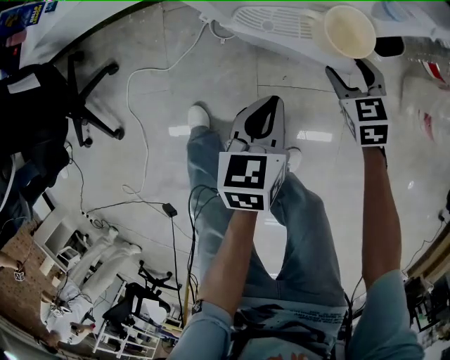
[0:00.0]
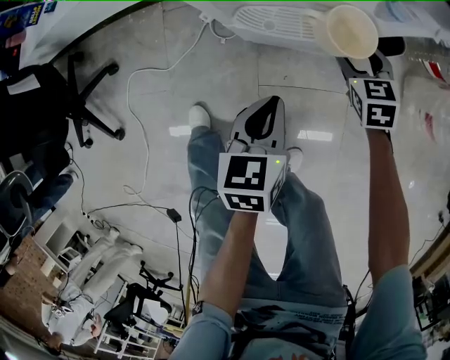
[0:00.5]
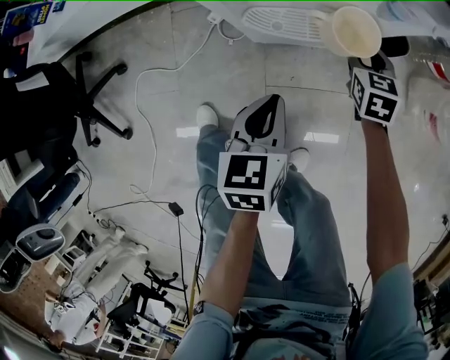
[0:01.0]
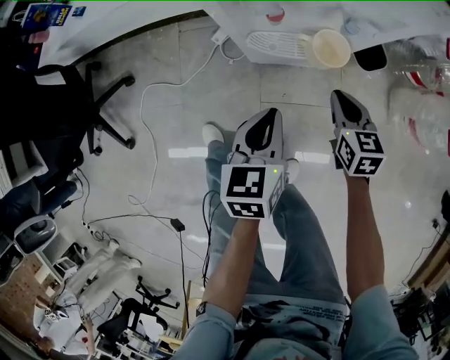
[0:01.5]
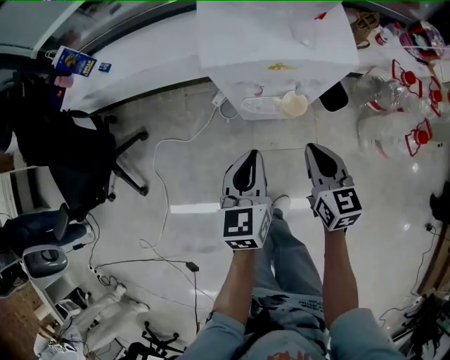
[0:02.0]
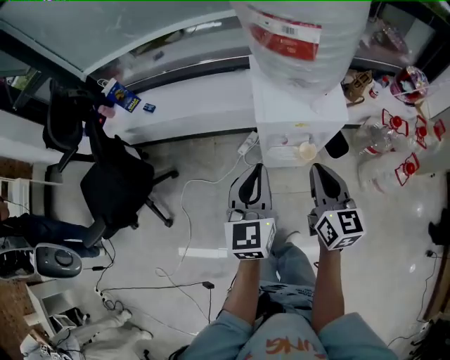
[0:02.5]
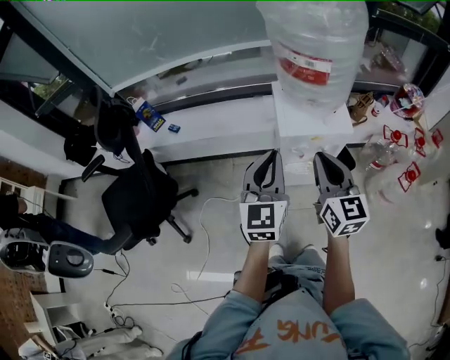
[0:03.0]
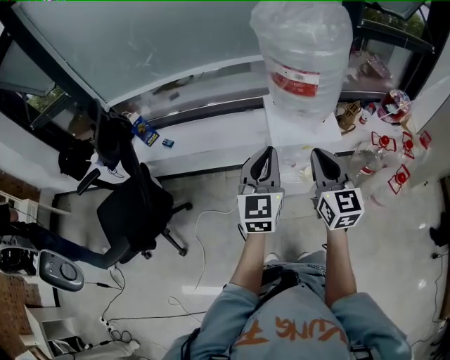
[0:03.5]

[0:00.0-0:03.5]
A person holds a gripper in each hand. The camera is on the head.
0.0 to 2.0 s: Both grippers move upward, about 30 cm. The right gripper swivels some 30 degrees, and closes up.
2.0 to 3.5 s: Both grippers move upward, approximately 35 cm. The left gripper swivels about 30 degrees; the right gripper rotates about 30 degrees.

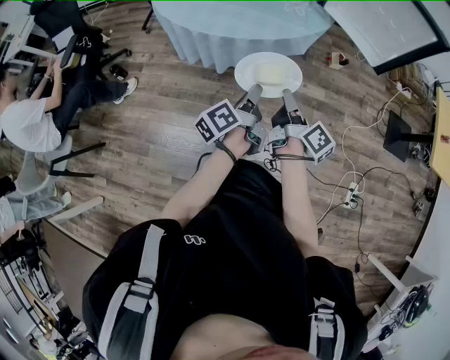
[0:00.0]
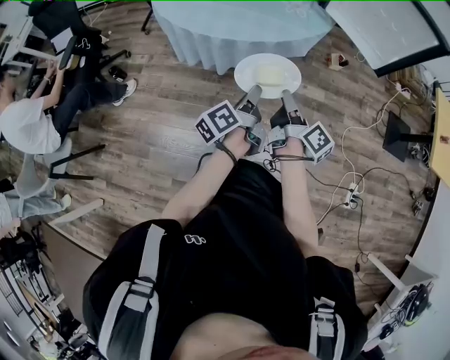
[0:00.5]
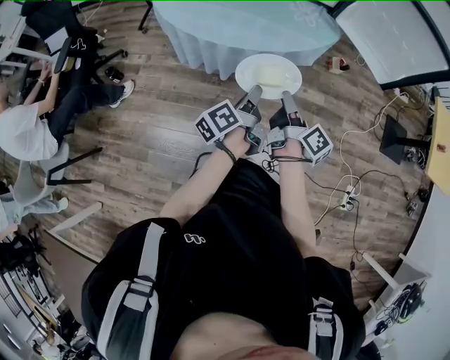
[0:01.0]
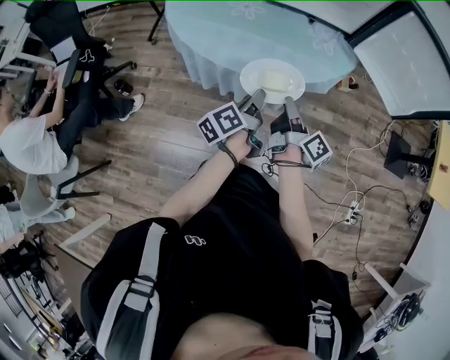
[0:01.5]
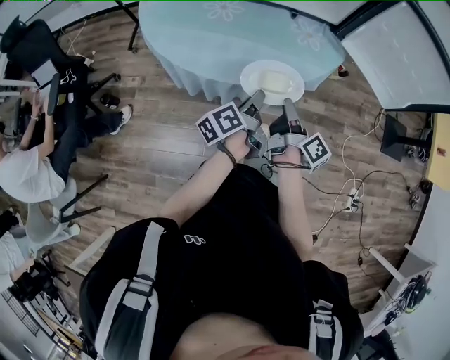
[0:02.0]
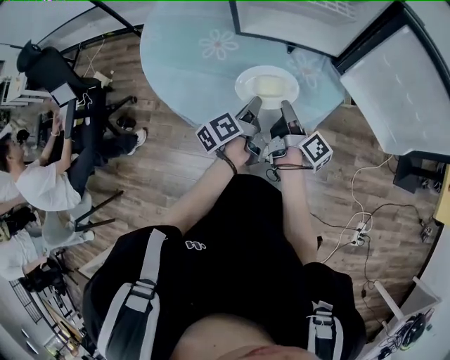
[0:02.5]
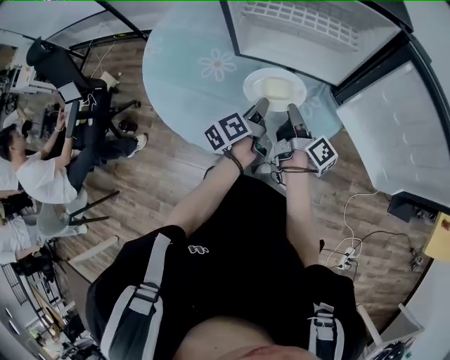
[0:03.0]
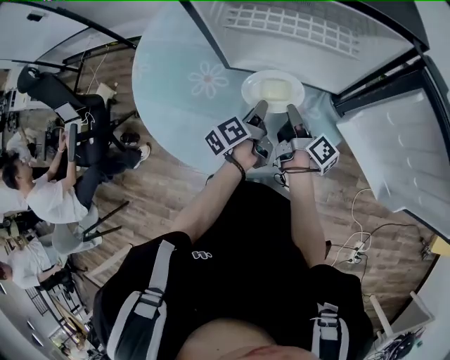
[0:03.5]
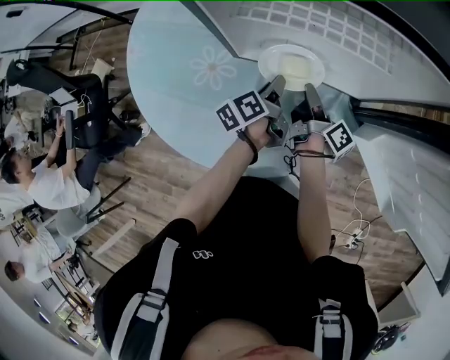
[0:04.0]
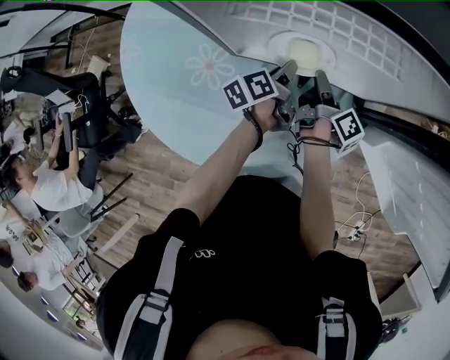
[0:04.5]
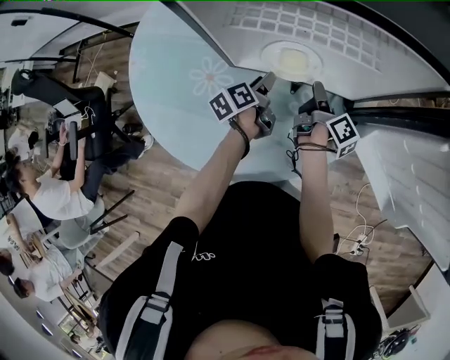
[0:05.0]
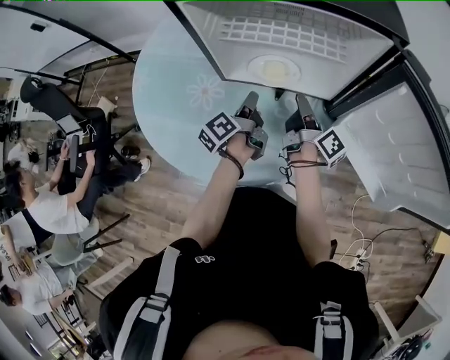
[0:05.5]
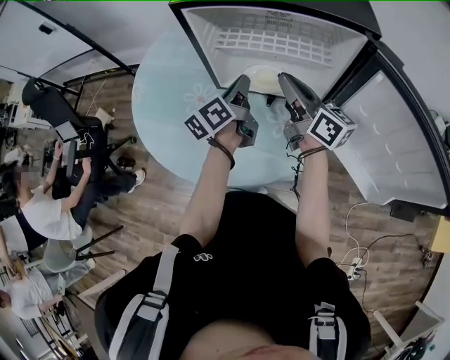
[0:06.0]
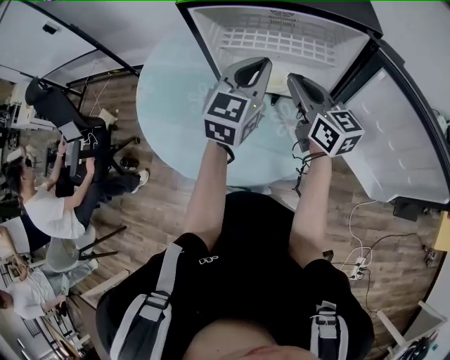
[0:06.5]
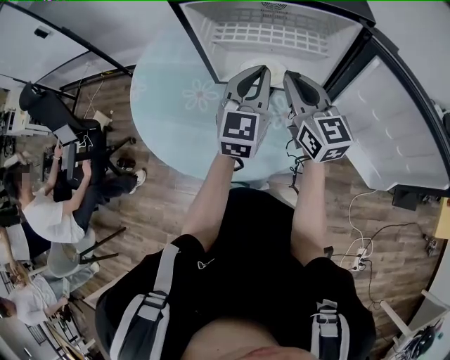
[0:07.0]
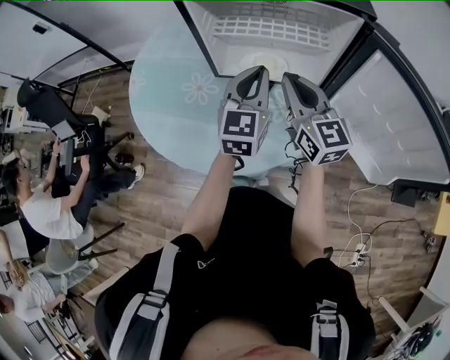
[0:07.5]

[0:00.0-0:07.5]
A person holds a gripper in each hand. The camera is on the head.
0.0 to 2.0 s: Both grippers travel together forward and to the left, approximately 20 cm.
2.0 to 4.0 s: Both grippers move forward, approximately 40 cm.
4.0 to 5.5 s: The left gripper is displaced upward by roughly 5 cm, and opens, then closes once more, while the right gripper travels upward and to the right by about 10 cm.
5.5 to 7.5 s: The two grippers go approximately 15 cm upward. The right gripper rotates around the line of its fingers by approximately 70 degrees, counterclockwise from behind. The left gripper twists approximately 80 degrees clockwise, seen from behind.

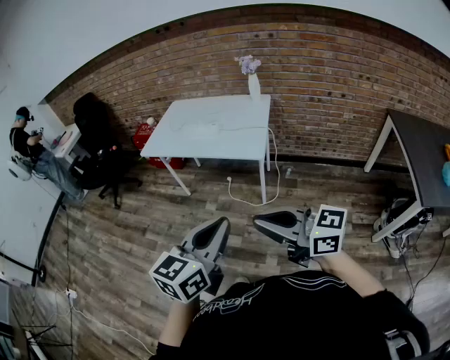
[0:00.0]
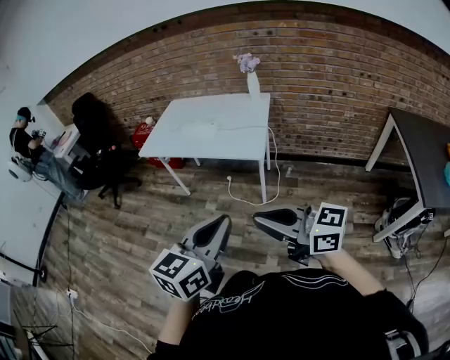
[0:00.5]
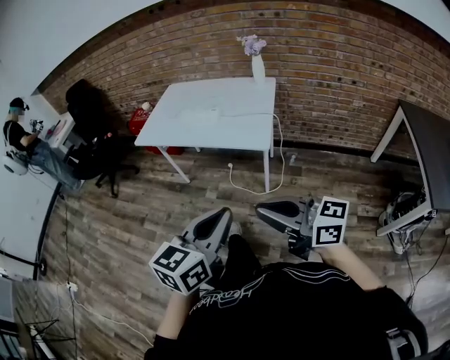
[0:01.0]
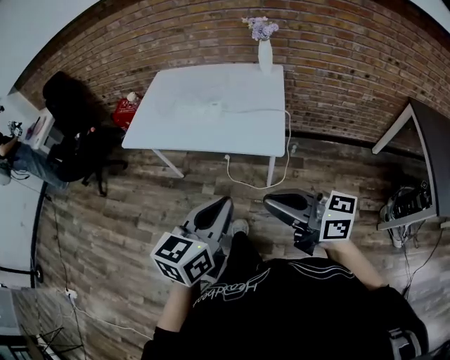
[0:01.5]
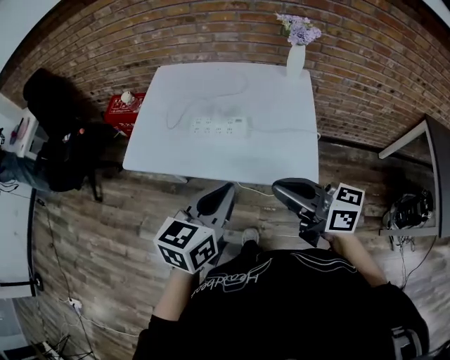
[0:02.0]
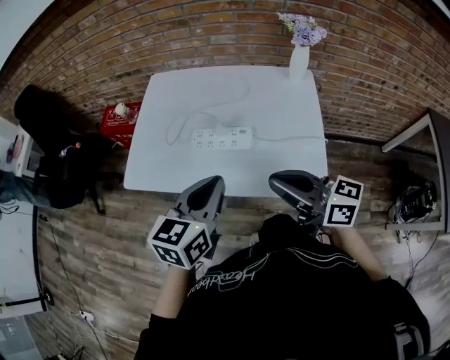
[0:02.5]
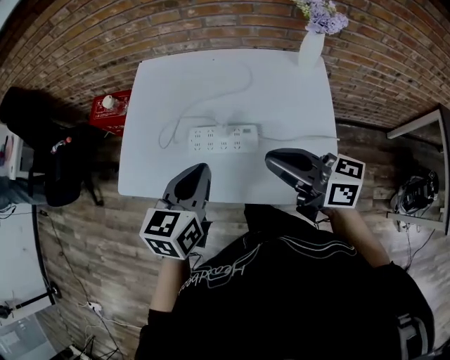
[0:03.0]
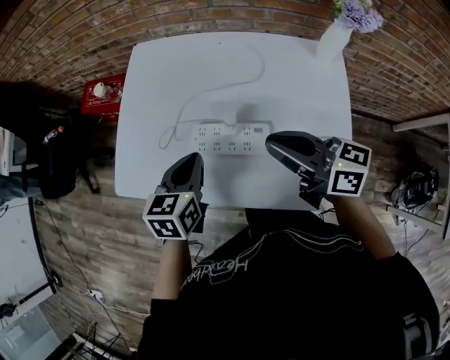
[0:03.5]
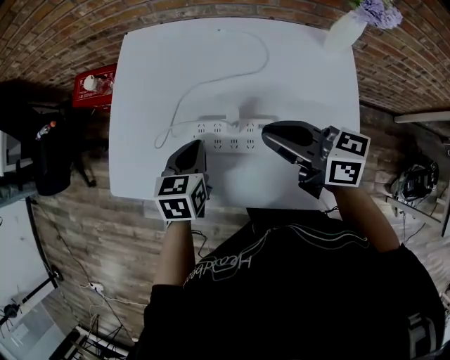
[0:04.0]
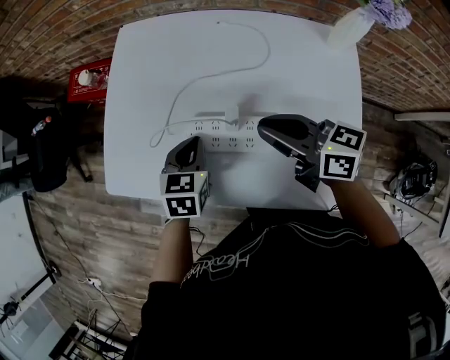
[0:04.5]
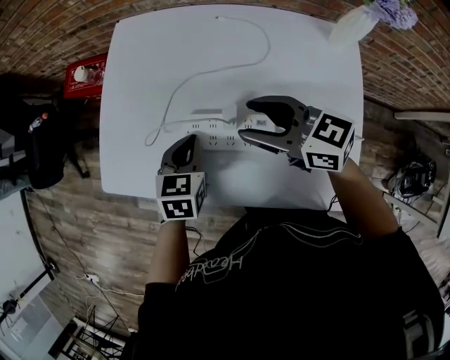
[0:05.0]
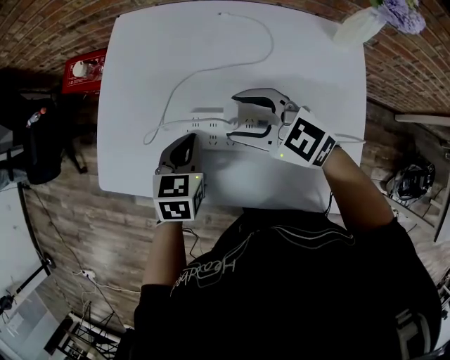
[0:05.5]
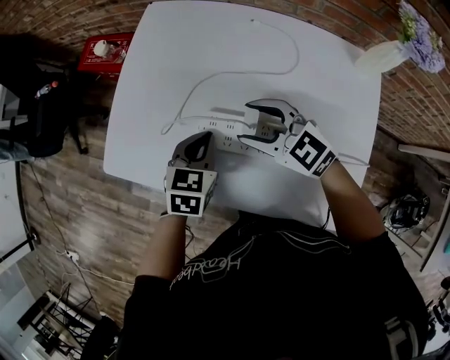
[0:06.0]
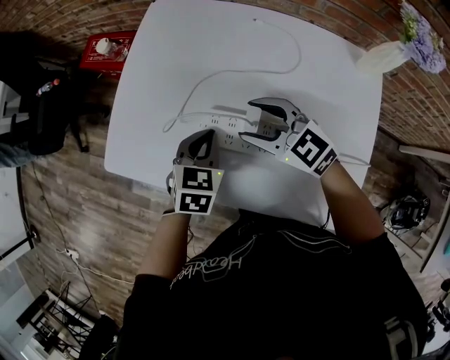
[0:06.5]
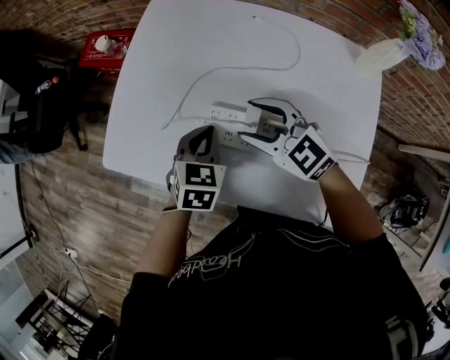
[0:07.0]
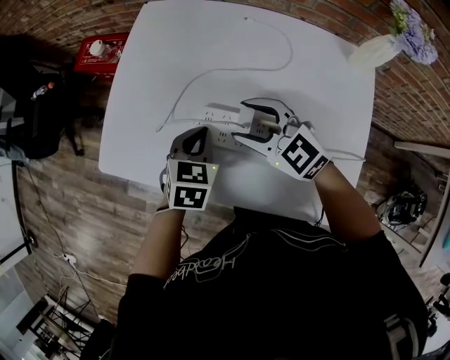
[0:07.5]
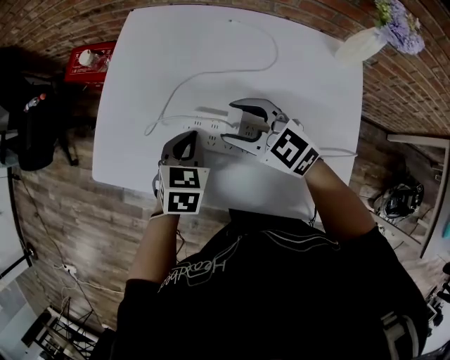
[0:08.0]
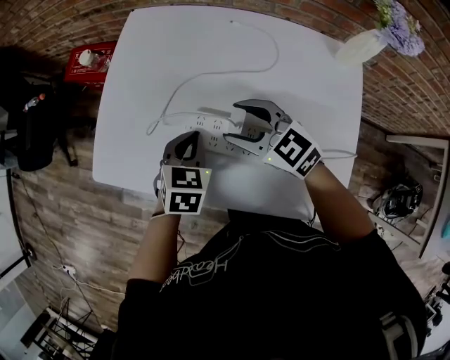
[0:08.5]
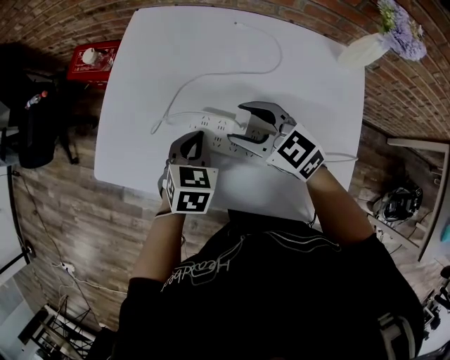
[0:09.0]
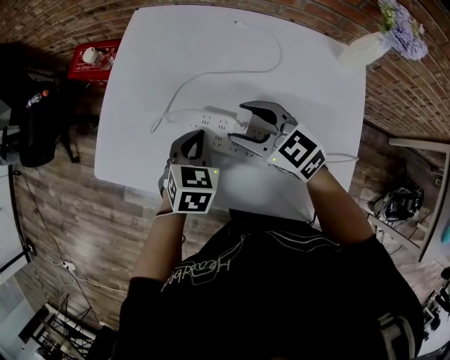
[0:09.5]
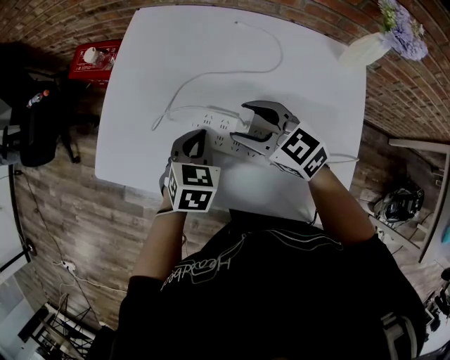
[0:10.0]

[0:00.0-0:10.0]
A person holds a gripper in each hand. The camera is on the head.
0.0 to 2.0 s: The pair of grippers is taken forward, roughly 50 cm. The right gripper swivels roughly 20 degrees.
2.0 to 4.0 s: The left gripper travels forward and downward by some 40 cm, and rotates about 30 degrees, while the right gripper heads forward, covering some 30 cm.
4.0 to 6.0 s: The right gripper goes some 10 cm downward, forward and to the left, rotates around the line of its fingers by some 50 degrees, counterclockwise from behind, and opens.
6.0 to 10.0 s: The grippers stay close to where they were, moving slightly.

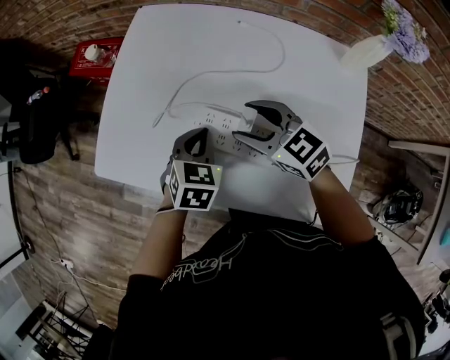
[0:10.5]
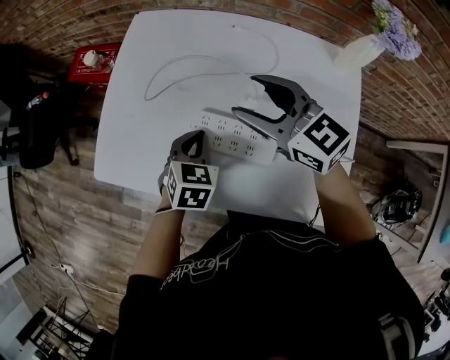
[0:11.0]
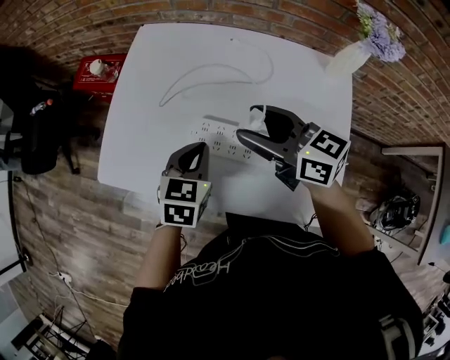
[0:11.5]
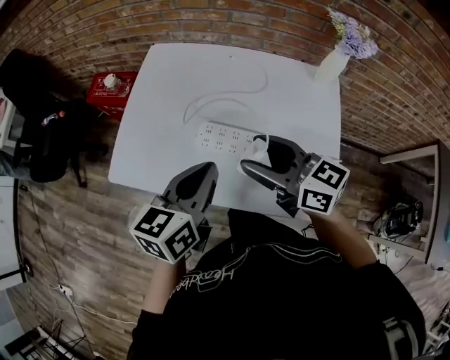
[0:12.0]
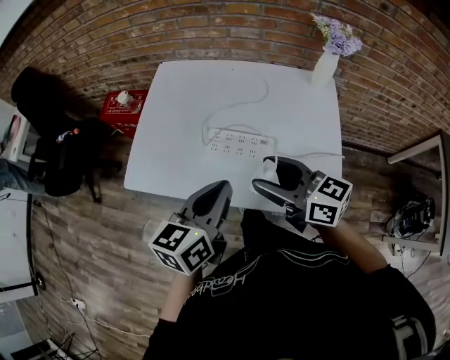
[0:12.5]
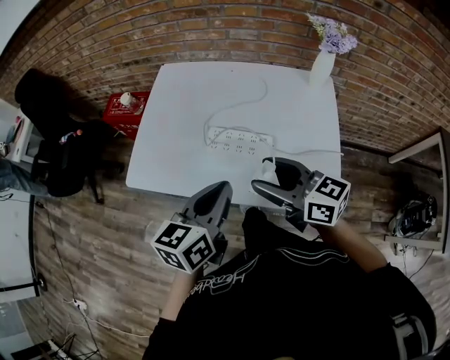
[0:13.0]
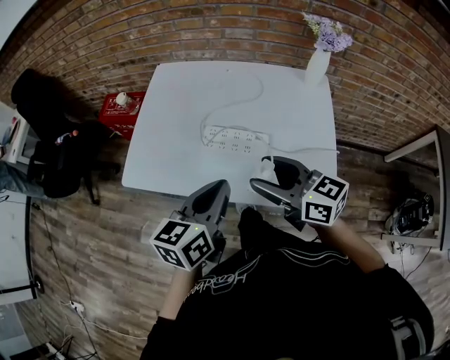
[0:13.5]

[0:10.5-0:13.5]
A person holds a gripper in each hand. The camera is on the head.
10.5 to 12.0 s: Both grippers travel together upward and backward, approximately 20 cm. The left gripper turns by some 40 degrees; the right gripper turns by approximately 30 degrees.
12.0 to 13.5 s: Both grippers move backward, some 10 cm.

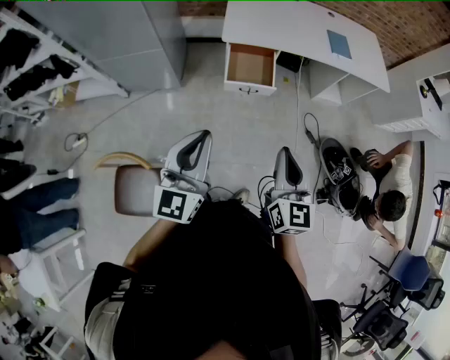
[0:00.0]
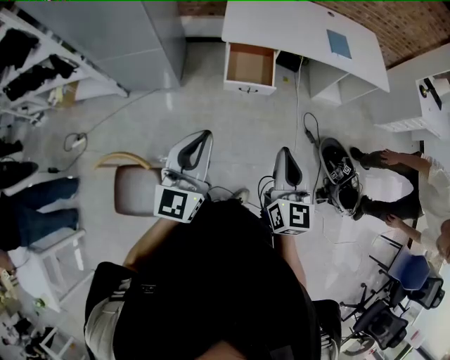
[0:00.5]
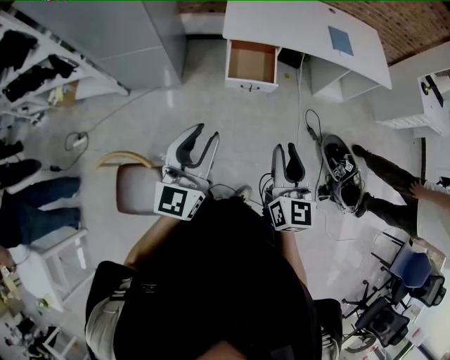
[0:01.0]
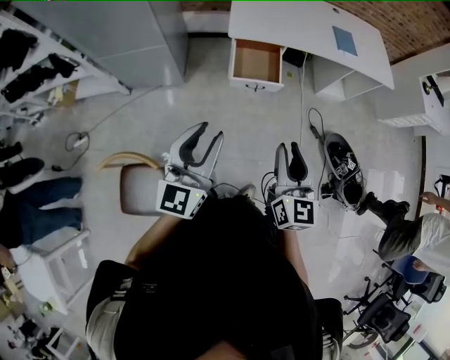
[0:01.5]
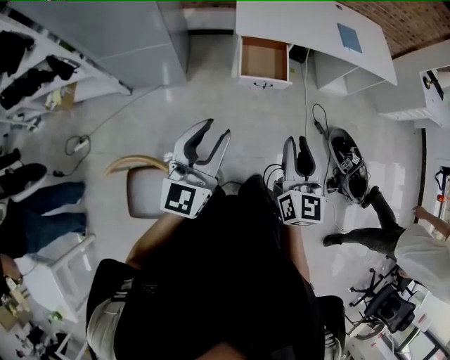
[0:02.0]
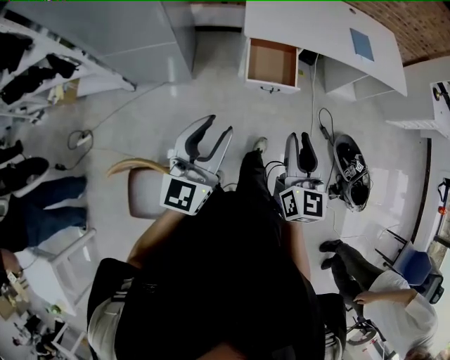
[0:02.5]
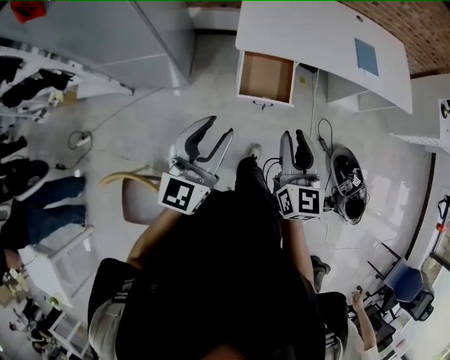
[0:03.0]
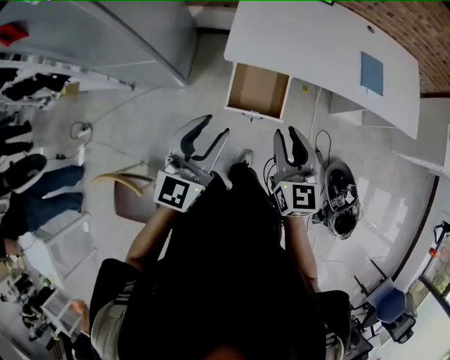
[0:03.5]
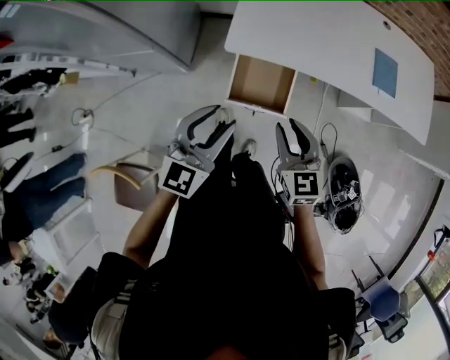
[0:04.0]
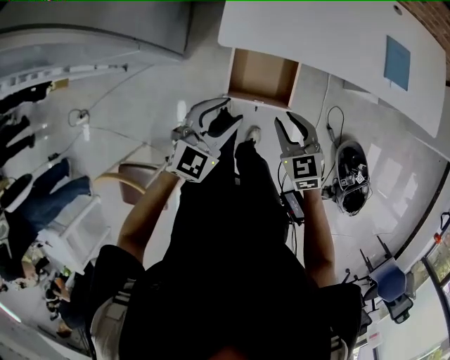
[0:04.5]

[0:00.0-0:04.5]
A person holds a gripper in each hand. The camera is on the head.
0.0 to 2.0 s: Both grippers move to the left, approximately 10 cm. The left gripper opens; the right gripper opens.
2.0 to 4.5 s: Both grippers move forward and downward, some 40 cm. The left gripper angles its fingers downward, by some 30 degrees, while the right gripper angles its fingers downward, by roughly 30 degrees.
